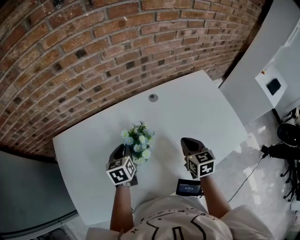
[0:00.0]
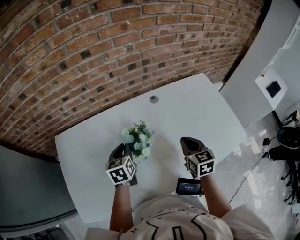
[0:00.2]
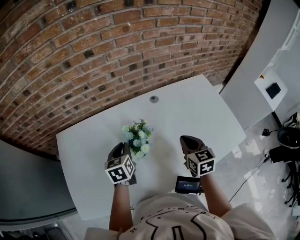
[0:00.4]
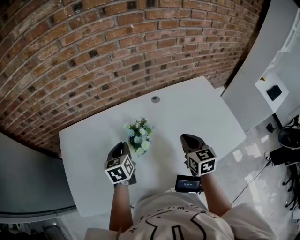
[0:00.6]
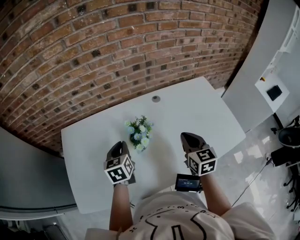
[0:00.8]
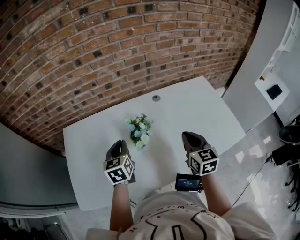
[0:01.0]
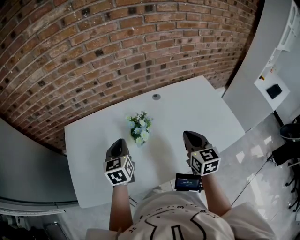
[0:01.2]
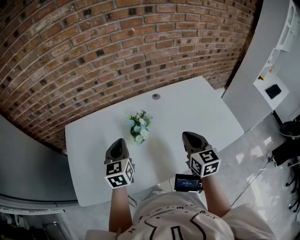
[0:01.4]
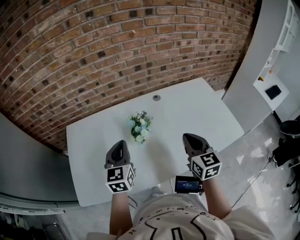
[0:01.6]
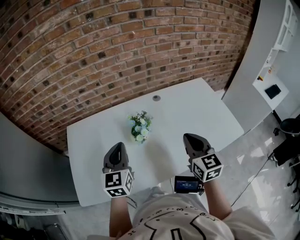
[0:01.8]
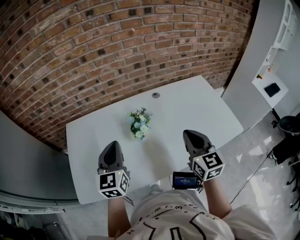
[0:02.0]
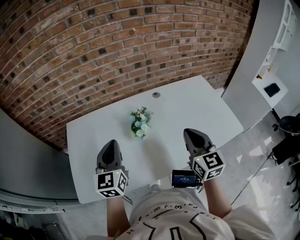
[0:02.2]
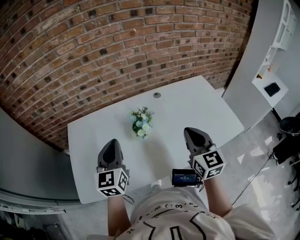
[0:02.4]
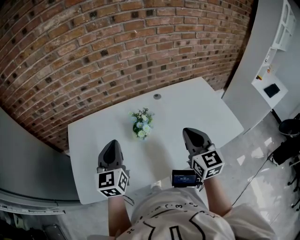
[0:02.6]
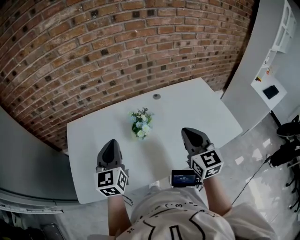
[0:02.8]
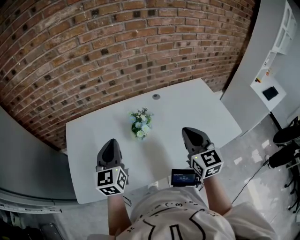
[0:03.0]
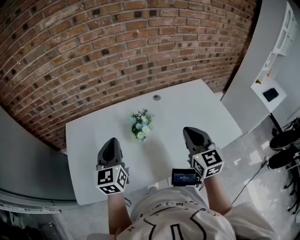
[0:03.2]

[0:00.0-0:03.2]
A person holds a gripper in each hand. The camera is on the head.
0:00.0 to 0:01.6: The two grippers go about 20 cm upward and backward. The left gripper turns by about 30 degrees.
0:01.6 to 0:03.2: The left gripper changes place by approximately 5 cm.

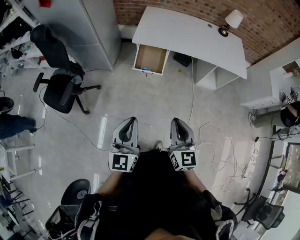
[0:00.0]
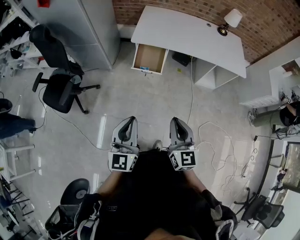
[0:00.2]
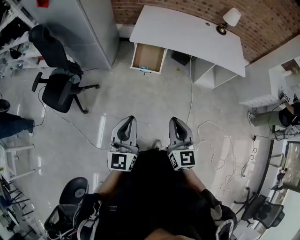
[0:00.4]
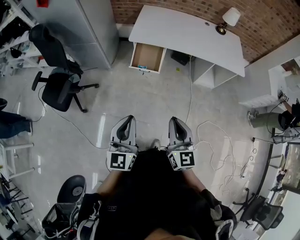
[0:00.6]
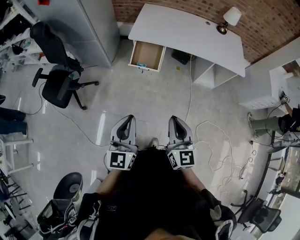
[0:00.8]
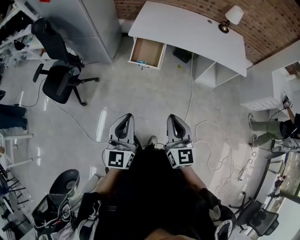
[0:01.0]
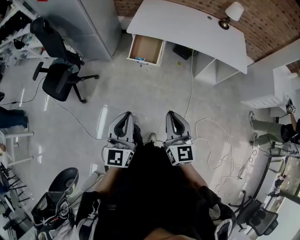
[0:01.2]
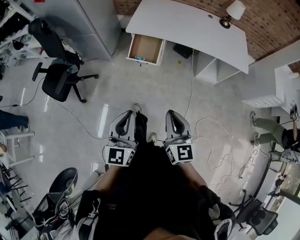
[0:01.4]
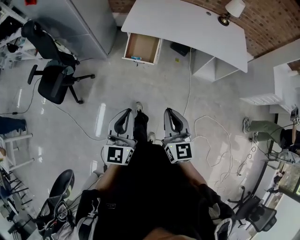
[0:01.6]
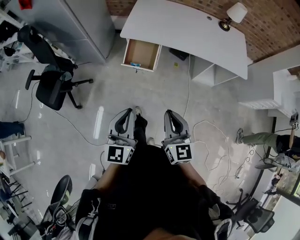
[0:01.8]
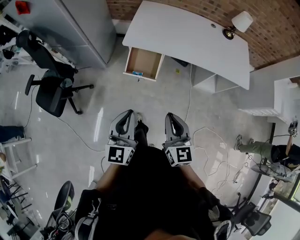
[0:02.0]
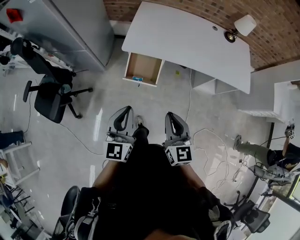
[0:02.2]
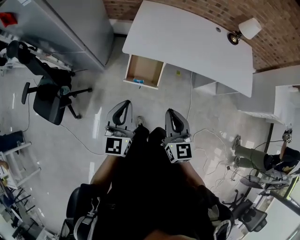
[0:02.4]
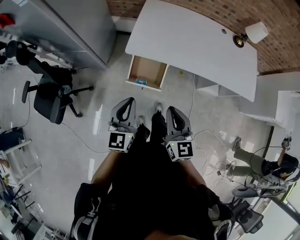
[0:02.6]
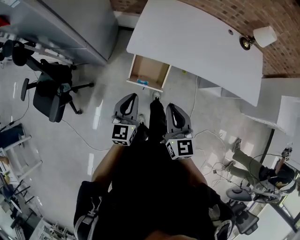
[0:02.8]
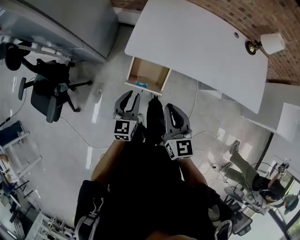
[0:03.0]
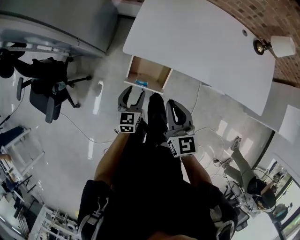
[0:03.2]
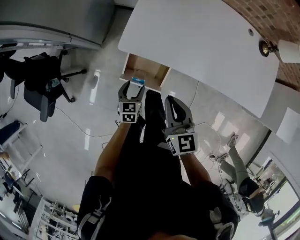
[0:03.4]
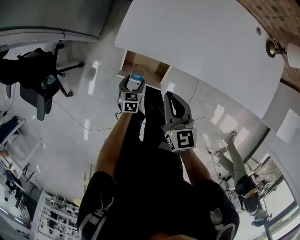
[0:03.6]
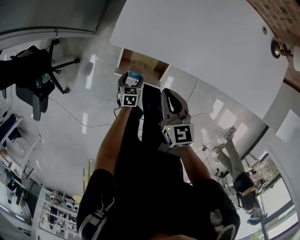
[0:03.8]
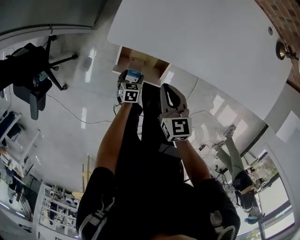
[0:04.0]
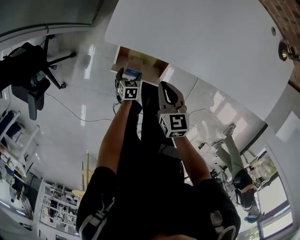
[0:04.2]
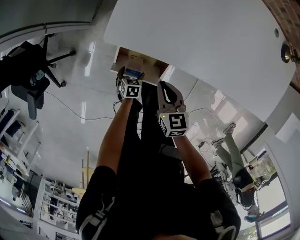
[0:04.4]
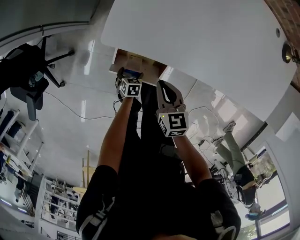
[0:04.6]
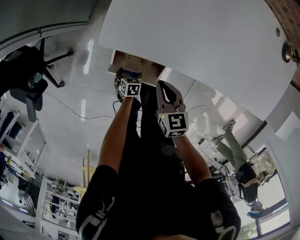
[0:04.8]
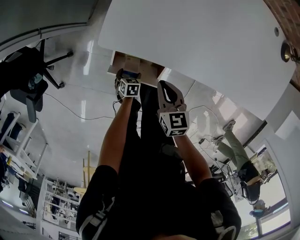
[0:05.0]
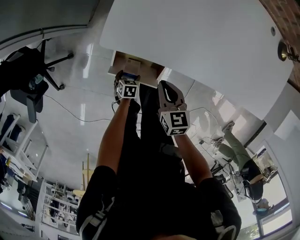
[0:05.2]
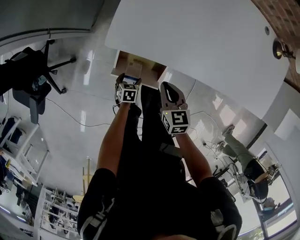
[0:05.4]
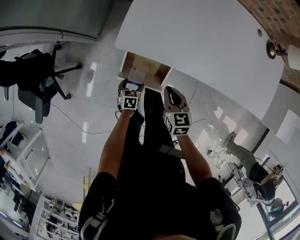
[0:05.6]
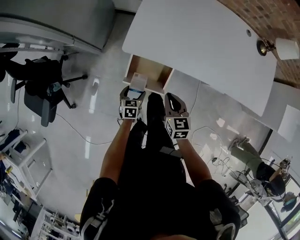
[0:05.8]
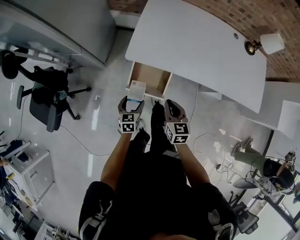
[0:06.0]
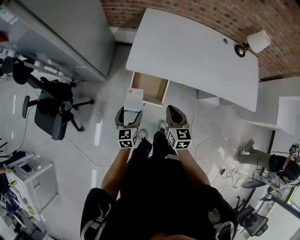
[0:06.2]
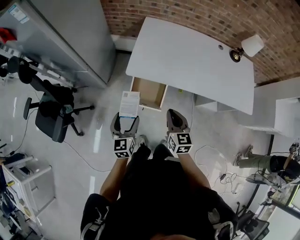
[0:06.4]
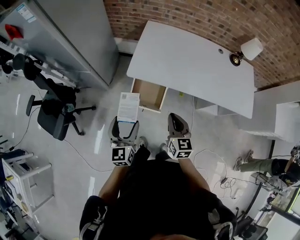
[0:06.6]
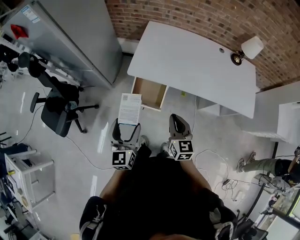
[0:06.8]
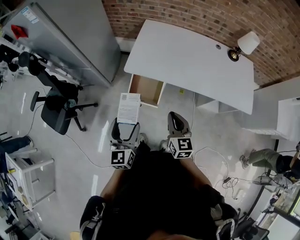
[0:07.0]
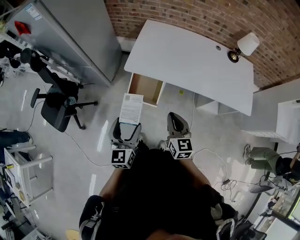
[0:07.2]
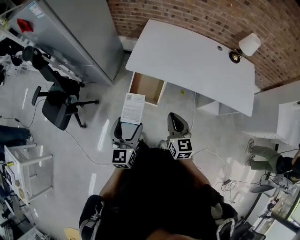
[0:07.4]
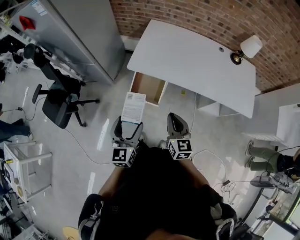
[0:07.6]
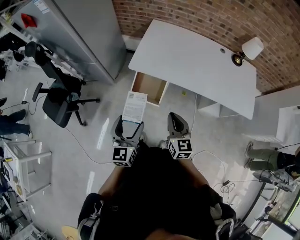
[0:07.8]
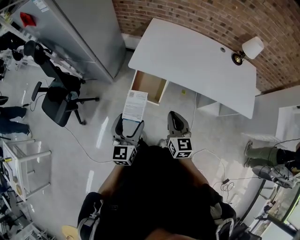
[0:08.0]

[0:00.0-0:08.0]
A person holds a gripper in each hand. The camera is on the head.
0:00.0 to 0:01.6: Both grippers move to the right, approximately 10 cm.
0:01.6 to 0:03.2: Both grippers are carried forward, about 50 cm. The left gripper heads downward, covering about 30 cm, turns by approximately 30 degrees, and opens.
0:03.2 to 0:04.8: Both grippers travel together downward, about 35 cm. The right gripper changes its angle by approximately 30 degrees. The left gripper tilts its fingers some 50 degrees downward, and opens.
0:04.8 to 0:06.4: The right gripper travels upward by roughly 30 cm, and changes its angle by some 20 degrees. The left gripper moves upward, about 50 cm, and angles its fingers upward, by about 60 degrees.
0:06.4 to 0:08.0: The grippers both shift backward, upward and to the right by approximately 15 cm.

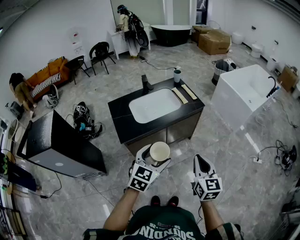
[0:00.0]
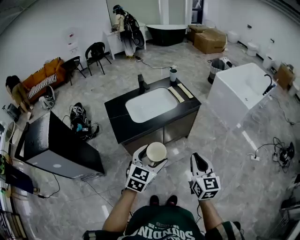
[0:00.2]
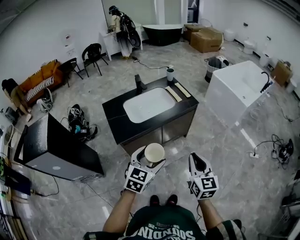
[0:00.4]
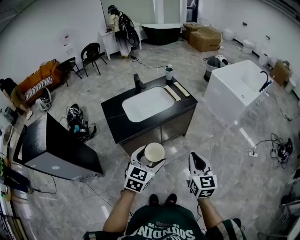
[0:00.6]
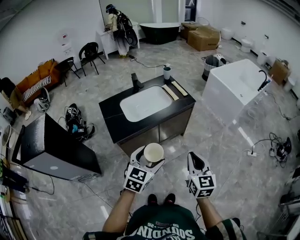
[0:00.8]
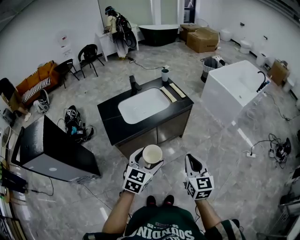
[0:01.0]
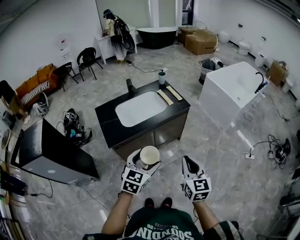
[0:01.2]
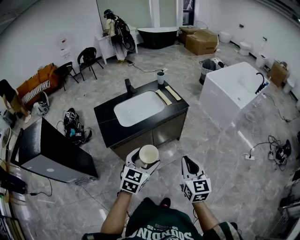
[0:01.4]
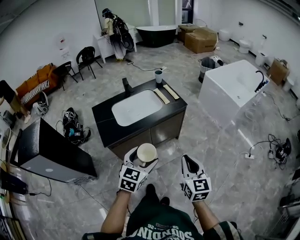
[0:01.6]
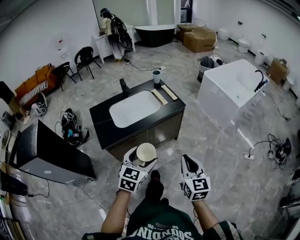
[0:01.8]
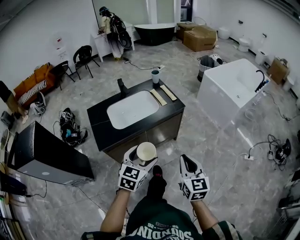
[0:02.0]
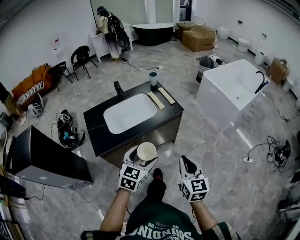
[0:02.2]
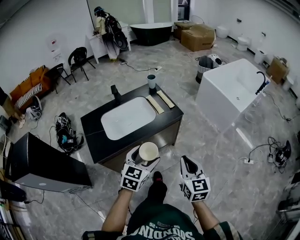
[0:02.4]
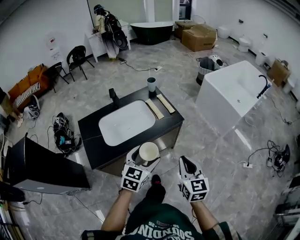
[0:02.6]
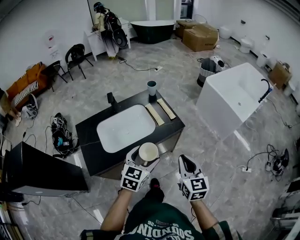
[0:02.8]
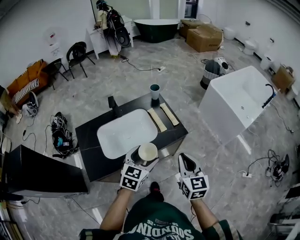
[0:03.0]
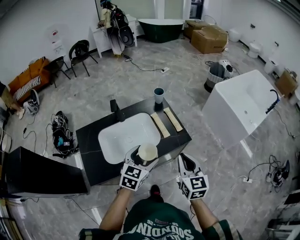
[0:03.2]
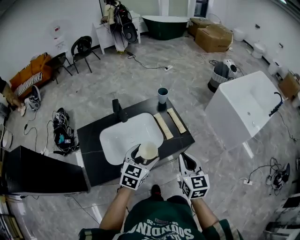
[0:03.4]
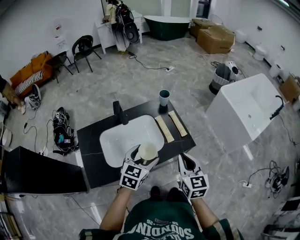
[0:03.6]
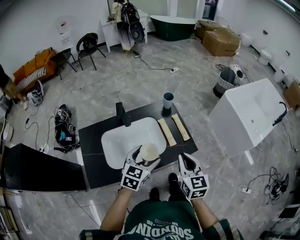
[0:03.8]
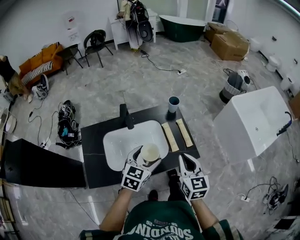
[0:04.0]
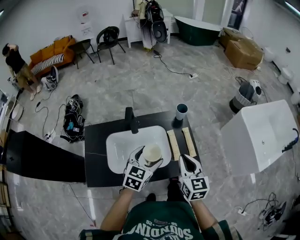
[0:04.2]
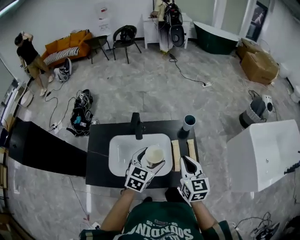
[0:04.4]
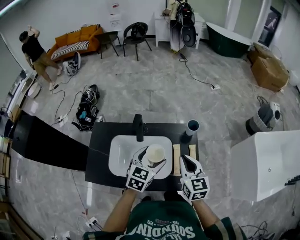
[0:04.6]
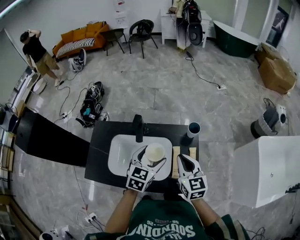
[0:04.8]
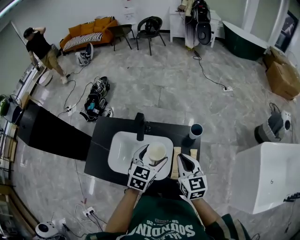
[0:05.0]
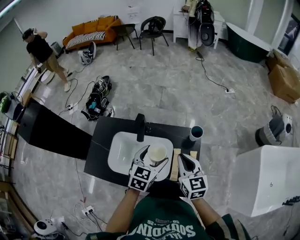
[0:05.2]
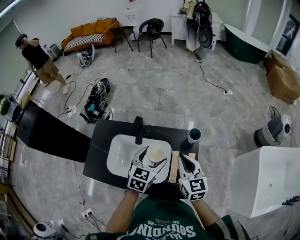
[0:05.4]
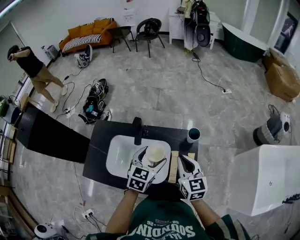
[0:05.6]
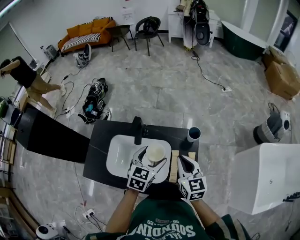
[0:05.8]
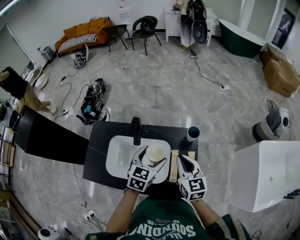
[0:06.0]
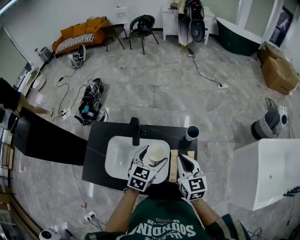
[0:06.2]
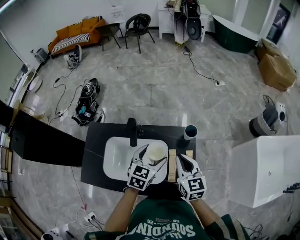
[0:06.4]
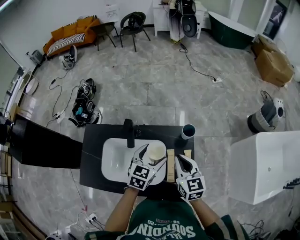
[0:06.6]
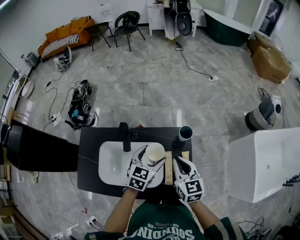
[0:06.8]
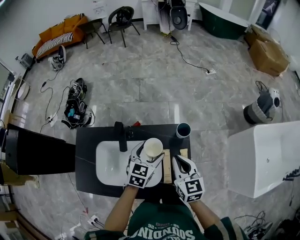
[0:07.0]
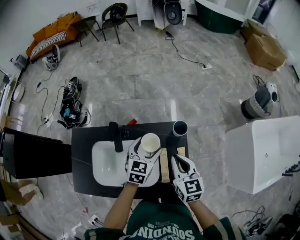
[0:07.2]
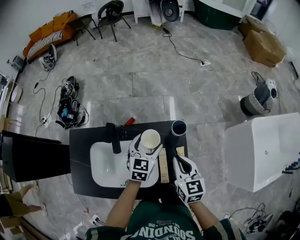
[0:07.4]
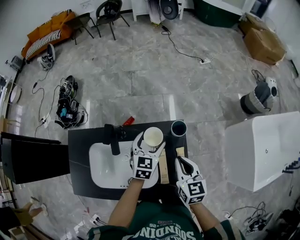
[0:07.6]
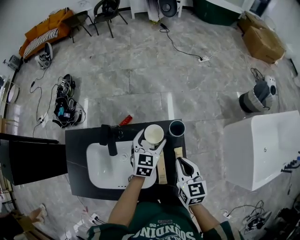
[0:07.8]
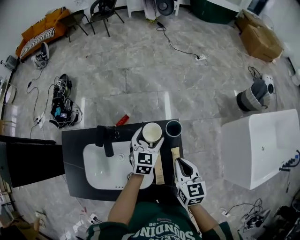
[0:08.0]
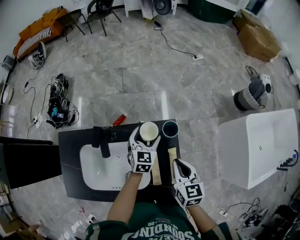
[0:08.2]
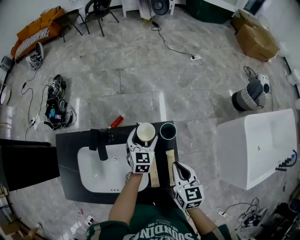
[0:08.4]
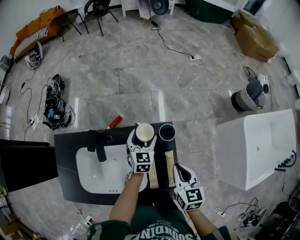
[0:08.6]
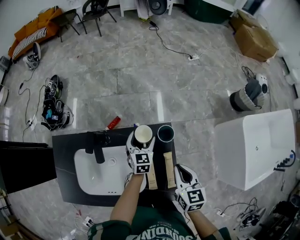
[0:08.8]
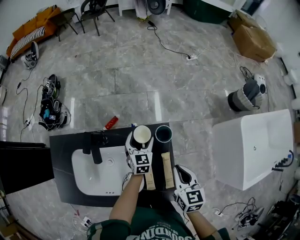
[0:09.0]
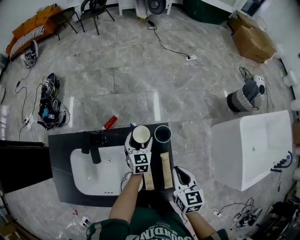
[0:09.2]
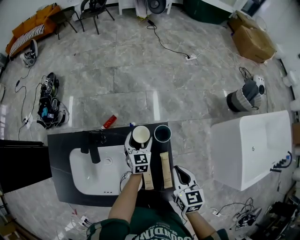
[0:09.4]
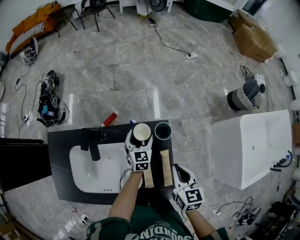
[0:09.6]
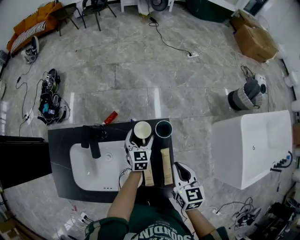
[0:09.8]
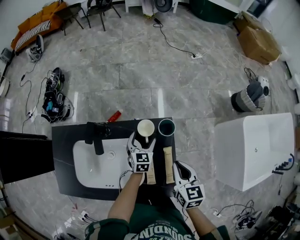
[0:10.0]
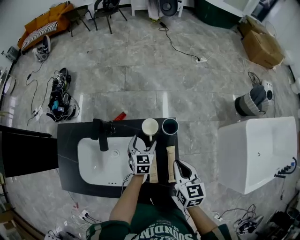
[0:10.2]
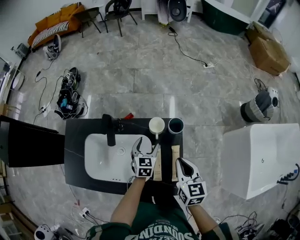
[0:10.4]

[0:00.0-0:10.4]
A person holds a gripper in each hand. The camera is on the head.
0:00.0 to 0:01.4: The grippers make only small movements.
0:01.4 to 0:03.0: Both grippers move forward, about 35 cm.
0:03.0 to 0:04.4: The two grippers go about 25 cm forward. The right gripper turns by some 20 degrees. The left gripper changes its angle by roughly 20 degrees.
0:04.4 to 0:06.0: Both grippers travel together forward, roughly 10 cm.
0:06.0 to 0:07.4: The left gripper shifts some 15 cm forward, downward and to the right. Meanwhile the right gripper travels downward and to the right by approximately 10 cm.
0:07.4 to 0:09.0: The right gripper goes roughly 5 cm to the right; the left gripper heads downward and forward, covering about 15 cm.
0:09.0 to 0:10.4: The left gripper is displaced backward by approximately 10 cm.

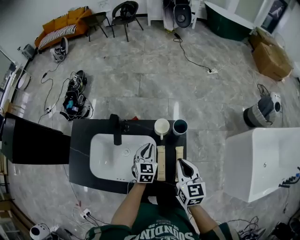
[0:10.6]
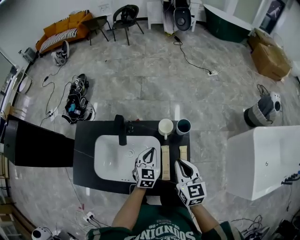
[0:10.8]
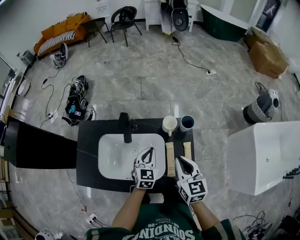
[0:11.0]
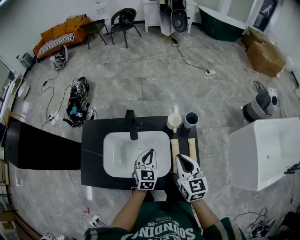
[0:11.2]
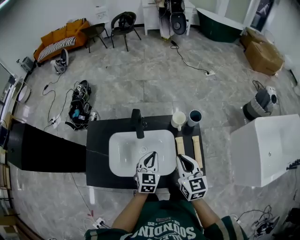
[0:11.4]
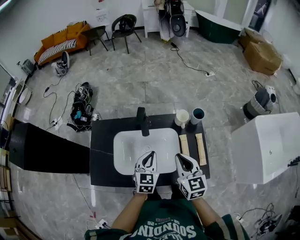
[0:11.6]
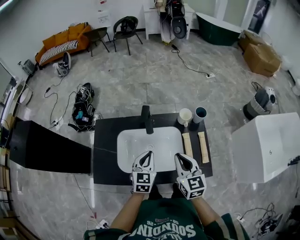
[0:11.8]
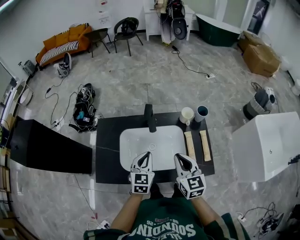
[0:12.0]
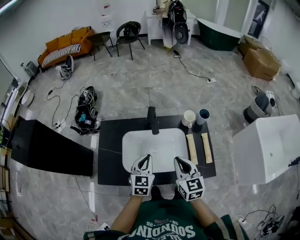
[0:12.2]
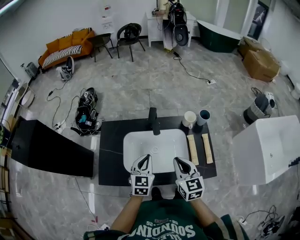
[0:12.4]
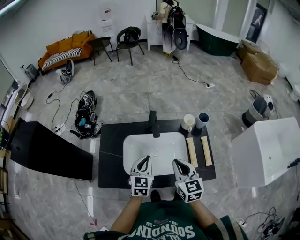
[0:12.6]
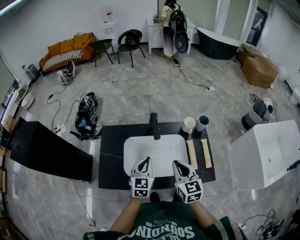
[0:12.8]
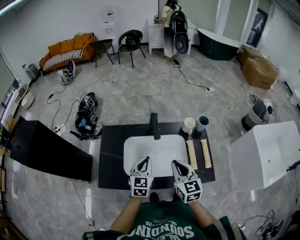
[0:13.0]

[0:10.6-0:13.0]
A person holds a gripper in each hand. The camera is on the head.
0:10.6 to 0:11.8: The right gripper shifts about 25 cm to the left and backward. The left gripper shifts some 25 cm to the left, backward and upward.
0:11.8 to 0:13.0: The grippers both shift to the left by about 5 cm.
